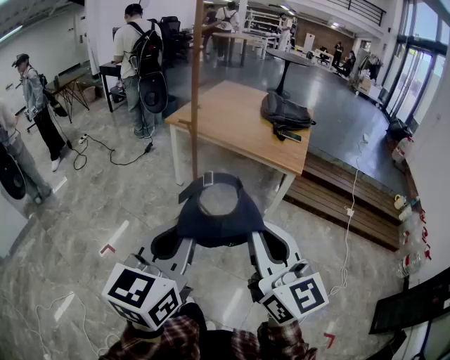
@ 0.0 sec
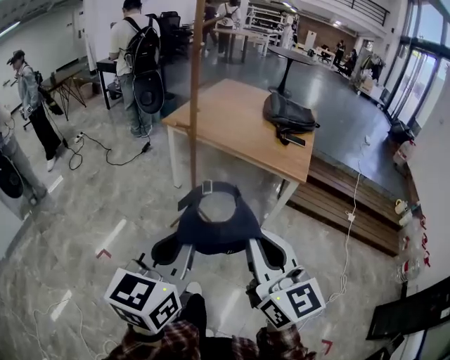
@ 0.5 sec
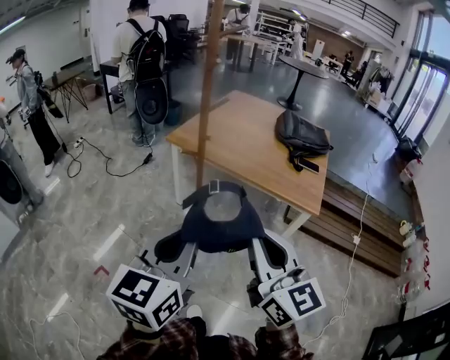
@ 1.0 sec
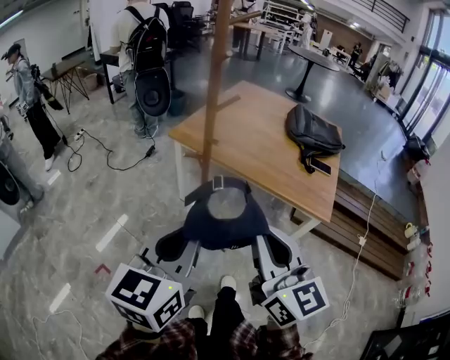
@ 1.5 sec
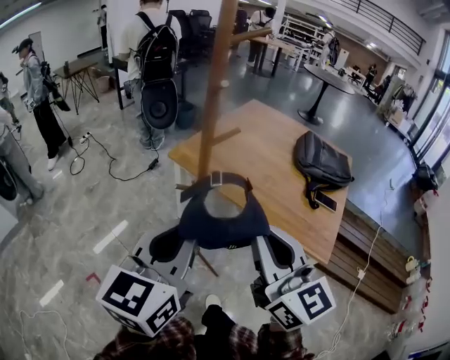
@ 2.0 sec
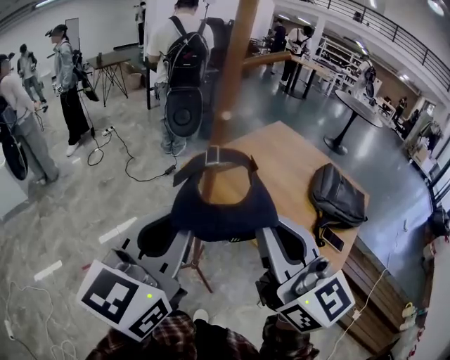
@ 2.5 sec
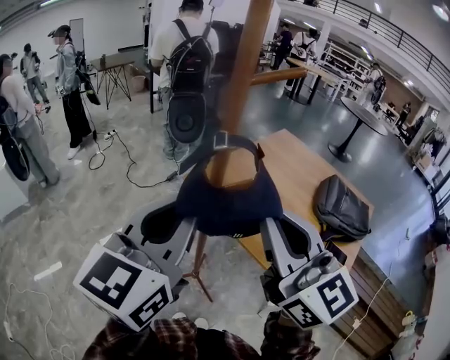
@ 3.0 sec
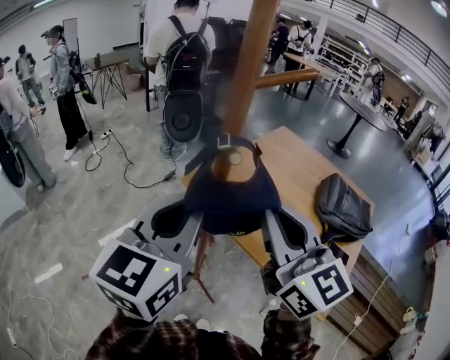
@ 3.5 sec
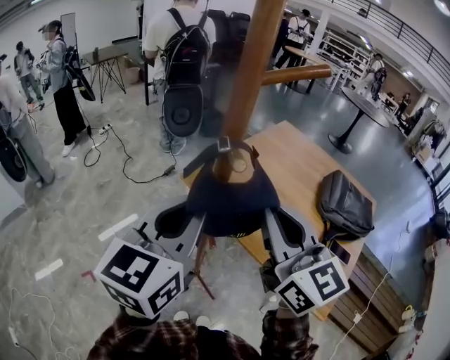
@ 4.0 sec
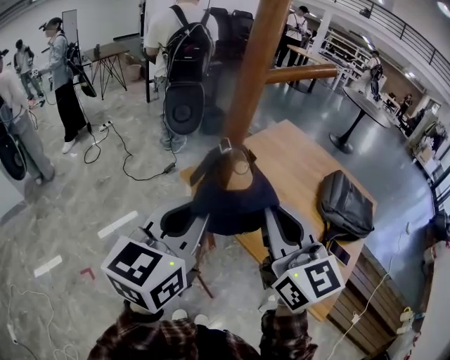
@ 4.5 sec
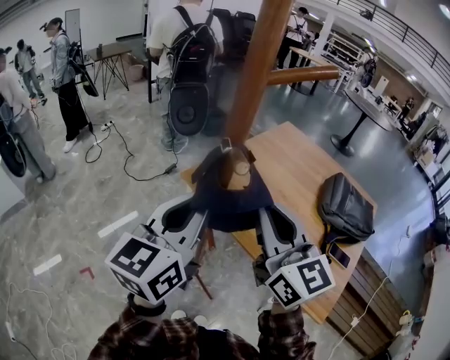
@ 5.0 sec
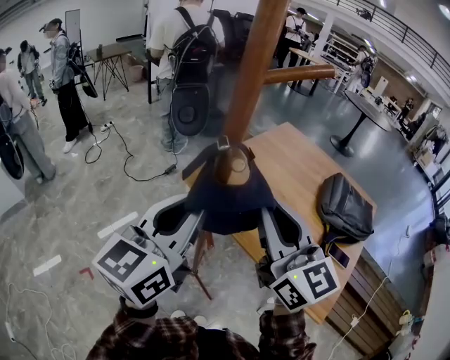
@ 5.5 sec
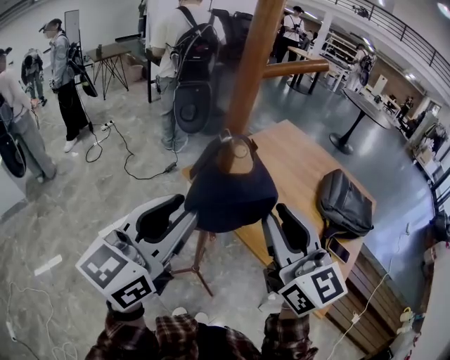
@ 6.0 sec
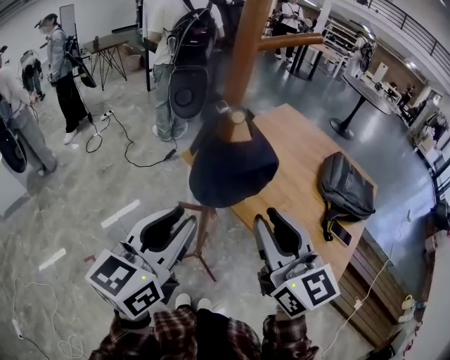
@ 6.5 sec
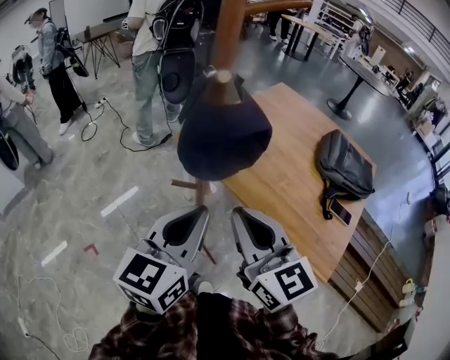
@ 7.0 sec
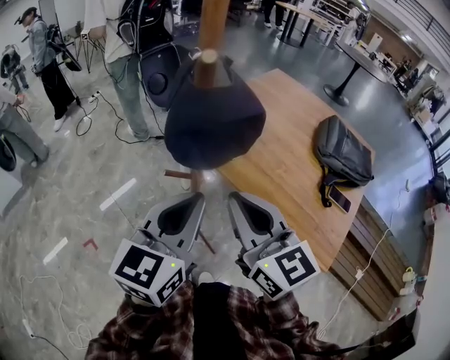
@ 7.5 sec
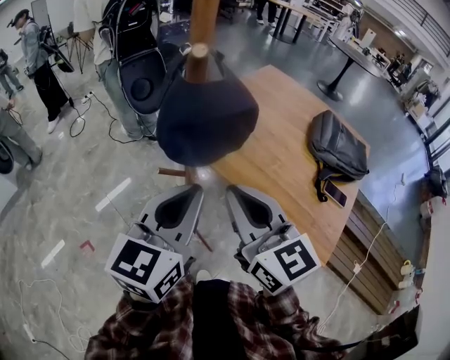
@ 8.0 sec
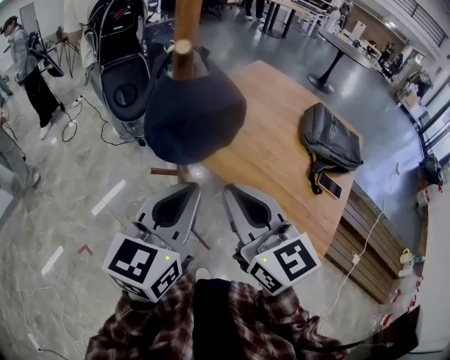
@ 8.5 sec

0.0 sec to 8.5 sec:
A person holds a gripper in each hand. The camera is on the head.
0.0 sec to 2.0 sec: The two grippers travel together, forward, roughly 40 cm.
2.0 sec to 4.0 sec: Both grippers travel together forward, roughly 20 cm.
4.0 sec to 6.5 sec: Both grippers move backward and downward, about 10 cm. The left gripper opens up.
6.5 sec to 8.5 sec: The left gripper is displaced to the right by about 5 cm, and closes. The right gripper closes up.

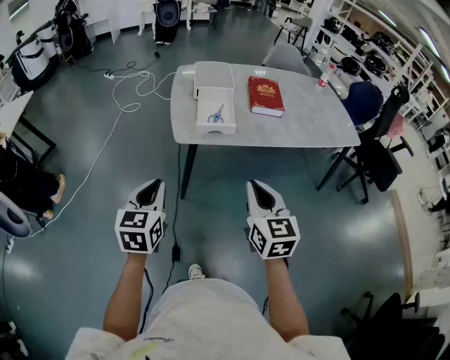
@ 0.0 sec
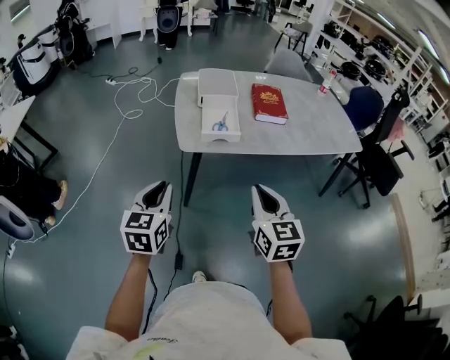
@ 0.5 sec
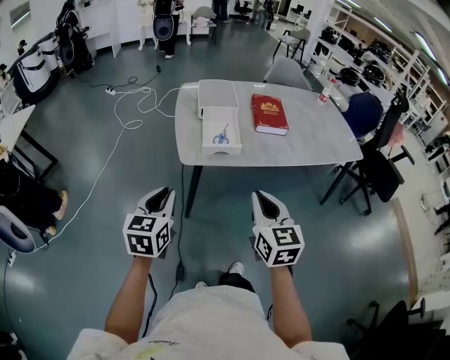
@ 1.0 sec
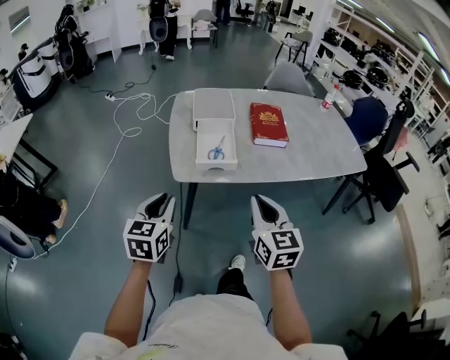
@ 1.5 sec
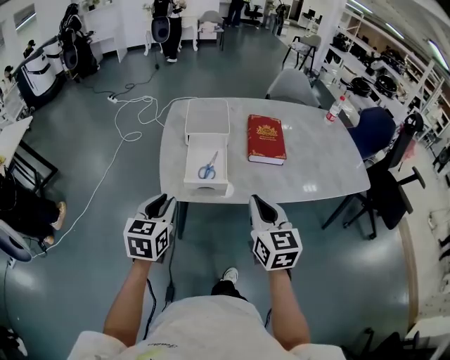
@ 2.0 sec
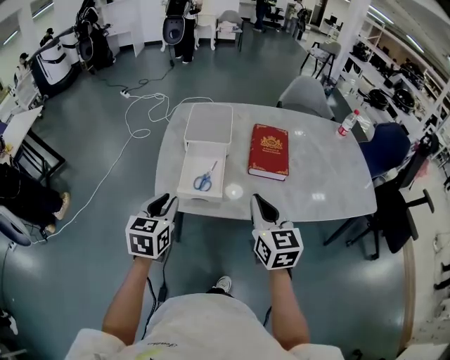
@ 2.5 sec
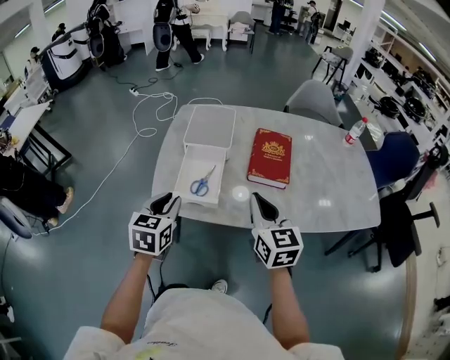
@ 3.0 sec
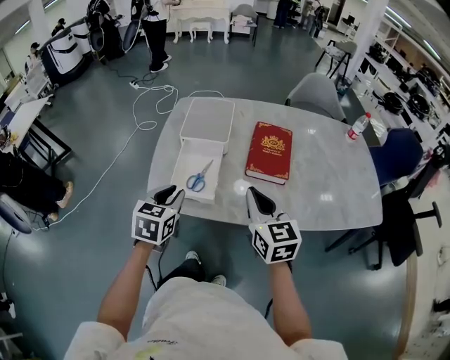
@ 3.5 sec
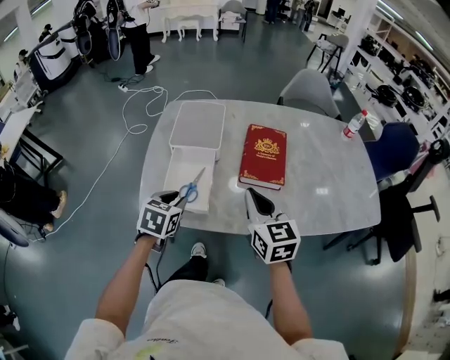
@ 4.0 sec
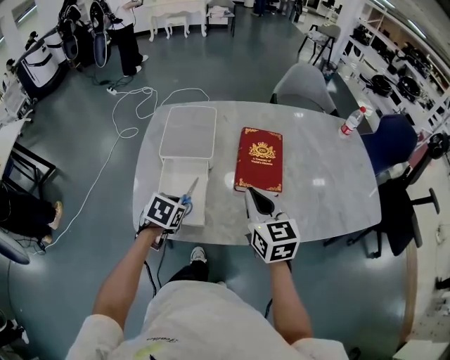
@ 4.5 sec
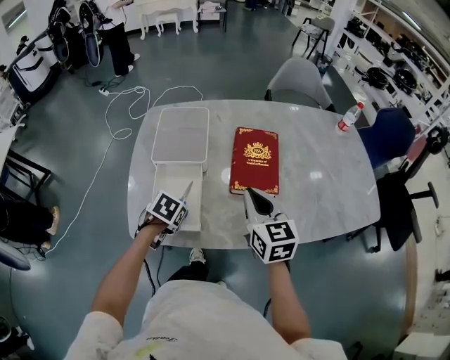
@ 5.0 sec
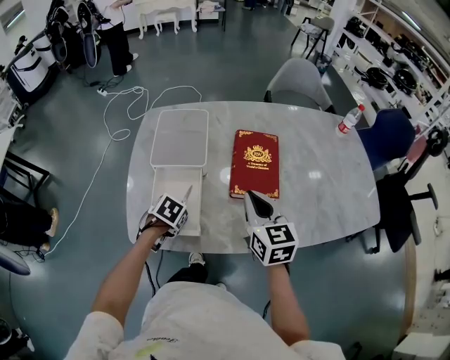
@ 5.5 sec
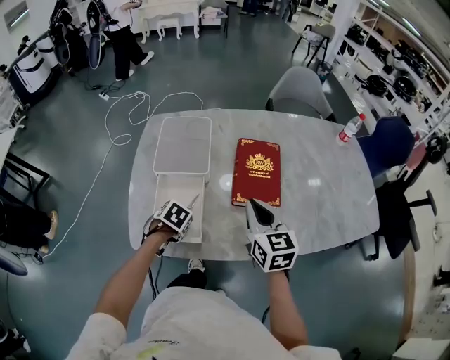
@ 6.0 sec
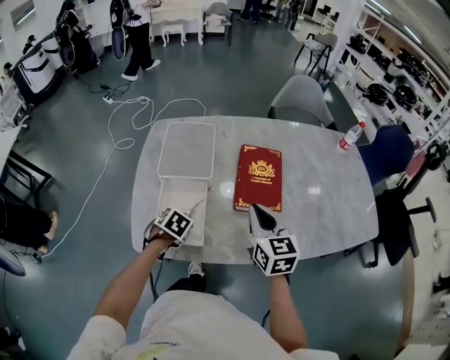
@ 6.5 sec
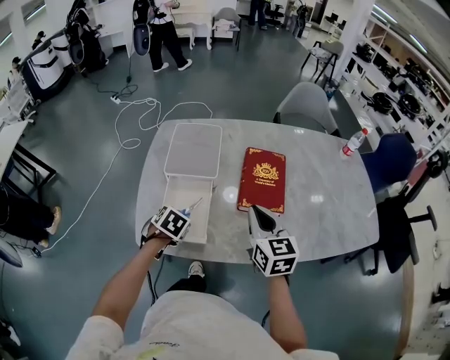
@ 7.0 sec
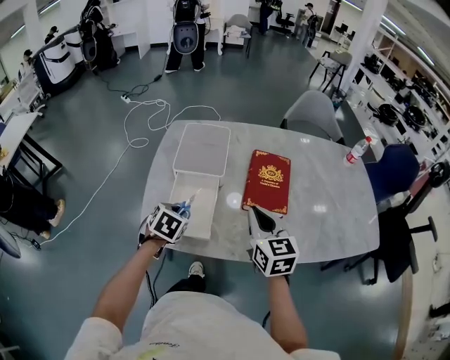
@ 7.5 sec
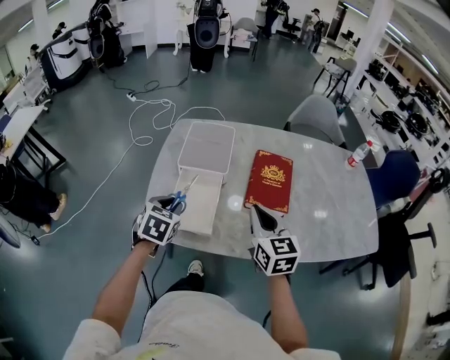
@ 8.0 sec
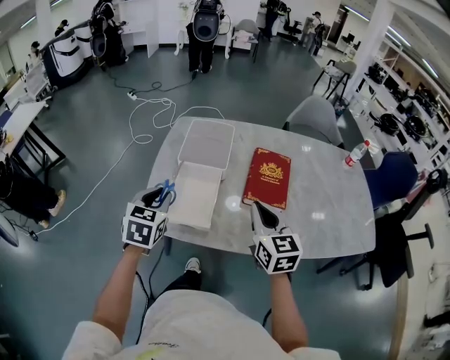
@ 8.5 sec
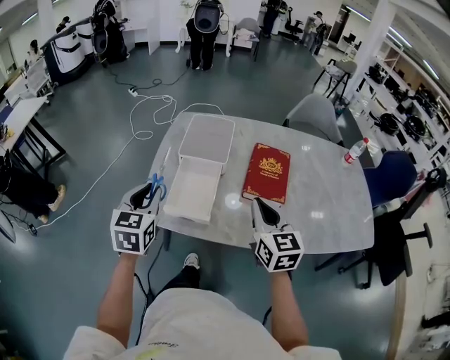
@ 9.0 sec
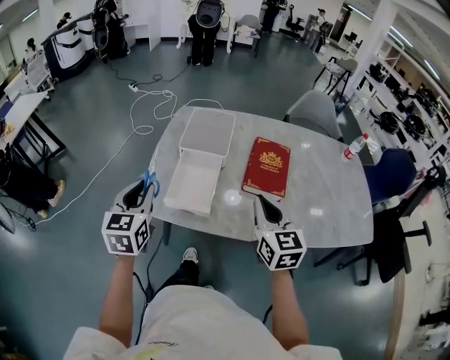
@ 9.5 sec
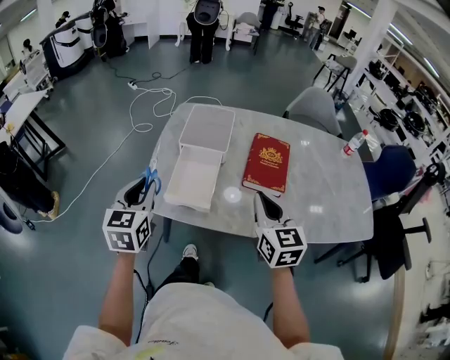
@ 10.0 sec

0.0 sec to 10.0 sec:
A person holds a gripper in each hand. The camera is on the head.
0.0 sec to 2.0 sec: Both grippers travel together forward, roughly 20 cm.
2.0 sec to 4.0 sec: The left gripper heads forward, to the right and downward, covering some 20 cm, and swivels about 20 degrees. Meanwhile the right gripper goes roughly 20 cm forward and to the right.
4.0 sec to 6.0 sec: The left gripper heads downward, covering some 10 cm, and tilts its fingers about 30 degrees downward. Meanwhile the right gripper changes place by some 10 cm.
6.0 sec to 8.0 sec: The left gripper shifts some 15 cm upward, and tilts its fingers approximately 30 degrees upward; the right gripper changes place by some 5 cm.
8.0 sec to 10.0 sec: The left gripper travels upward, backward and to the left by roughly 15 cm, and swivels roughly 30 degrees, while the right gripper goes about 5 cm backward.

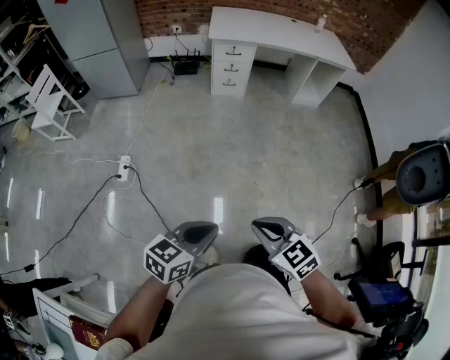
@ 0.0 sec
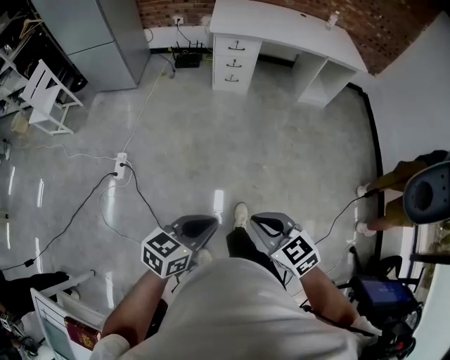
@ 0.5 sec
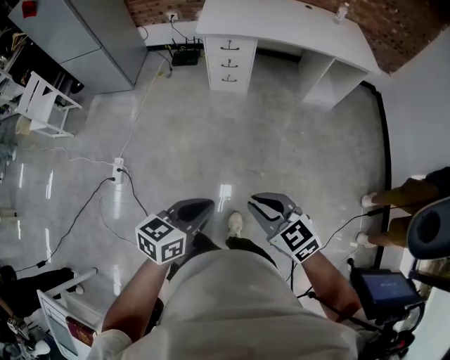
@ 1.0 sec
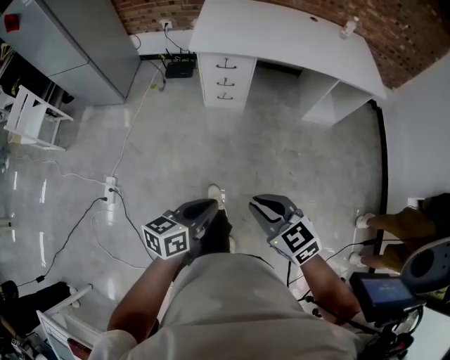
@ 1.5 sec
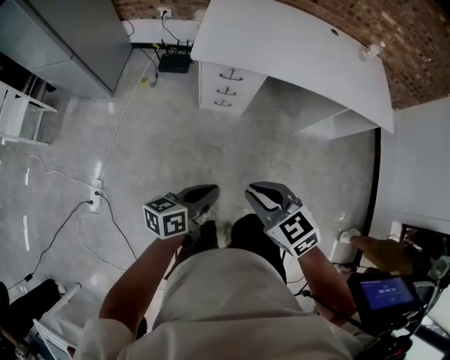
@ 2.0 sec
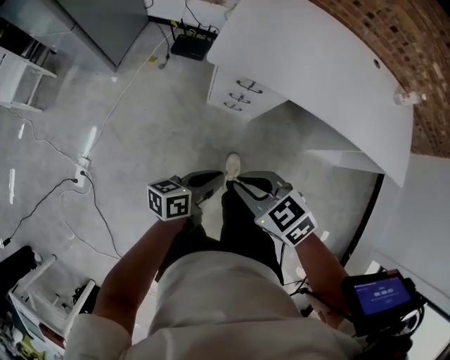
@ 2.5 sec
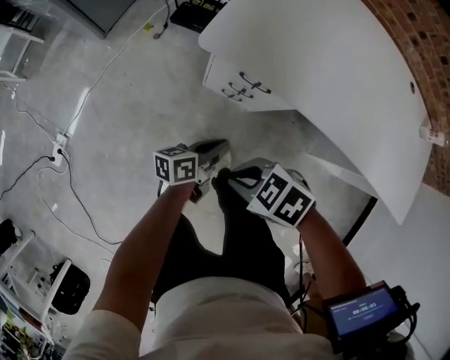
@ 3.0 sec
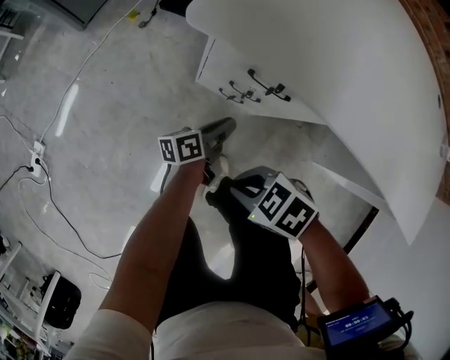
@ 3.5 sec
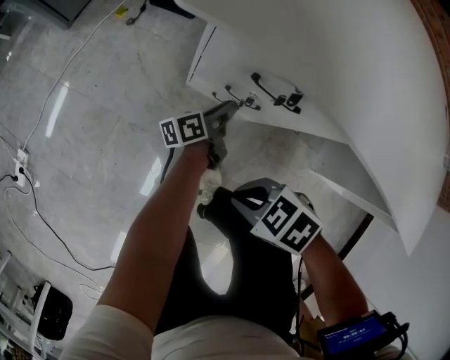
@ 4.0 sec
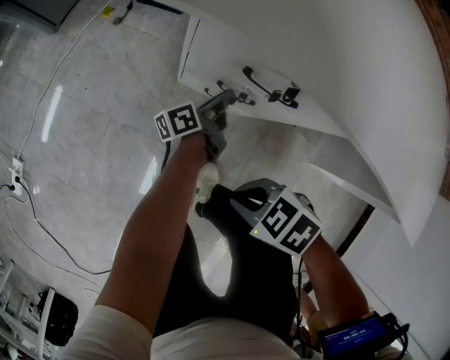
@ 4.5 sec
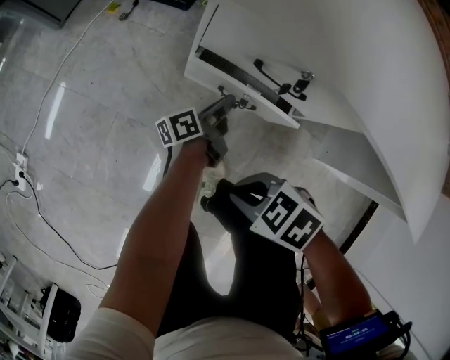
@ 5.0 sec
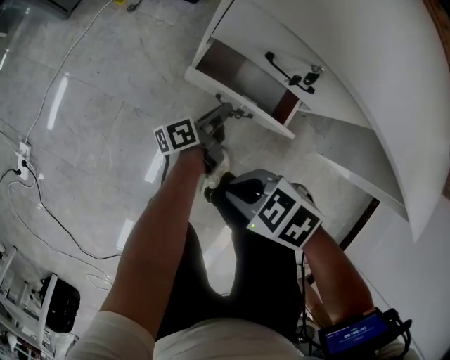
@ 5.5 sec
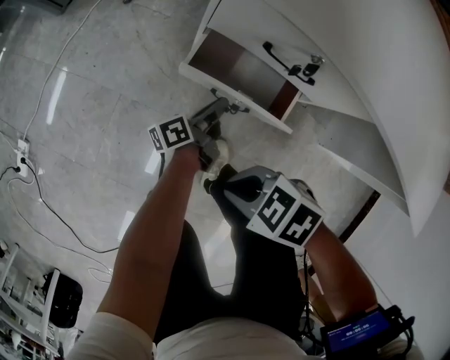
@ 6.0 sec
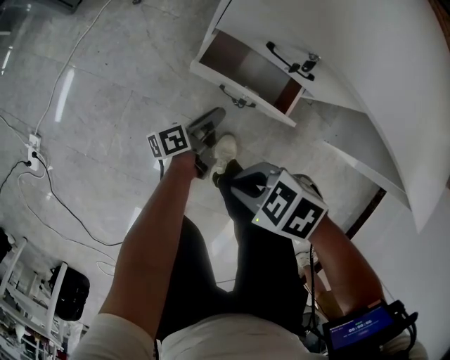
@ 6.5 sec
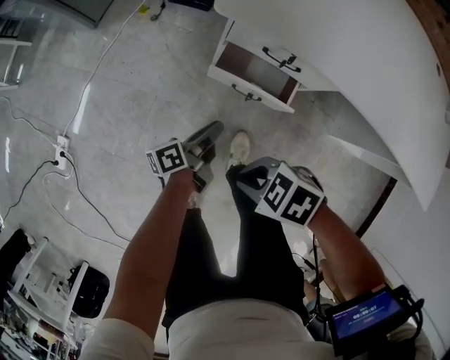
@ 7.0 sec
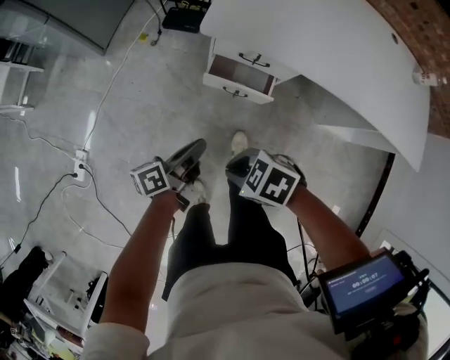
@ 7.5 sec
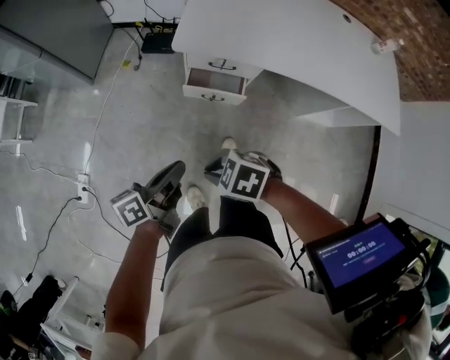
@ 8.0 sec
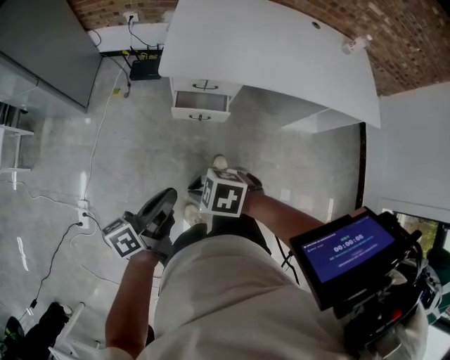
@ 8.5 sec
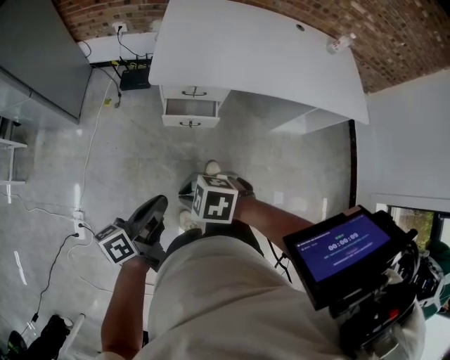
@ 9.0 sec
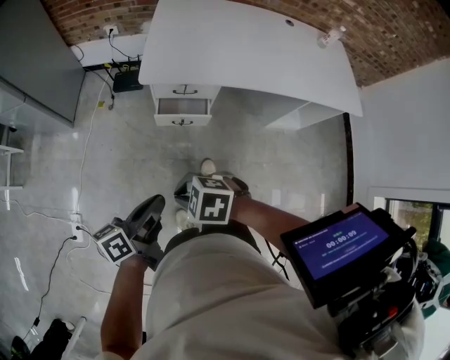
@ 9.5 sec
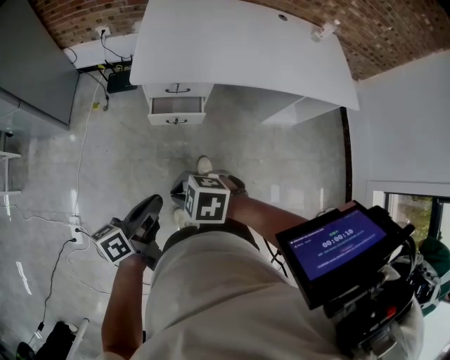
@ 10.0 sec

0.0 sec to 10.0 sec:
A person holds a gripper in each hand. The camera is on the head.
0.0 sec to 2.0 sec: Both grippers are carried forward, about 70 cm. The left gripper rotates approximately 30 degrees.
2.0 sec to 4.0 sec: The two grippers go roughly 50 cm downward. The left gripper changes its angle by about 40 degrees. The right gripper changes its angle by approximately 50 degrees.
4.0 sec to 6.0 sec: The left gripper moves some 10 cm.
6.0 sec to 8.0 sec: The left gripper shifts roughly 50 cm upward, and changes its angle by approximately 20 degrees. Meanwhile the right gripper goes roughly 30 cm upward.
8.0 sec to 10.0 sec: The two grippers go roughly 5 cm upward.
